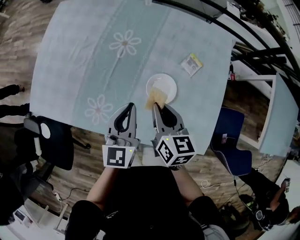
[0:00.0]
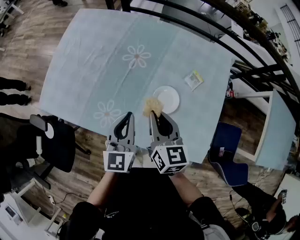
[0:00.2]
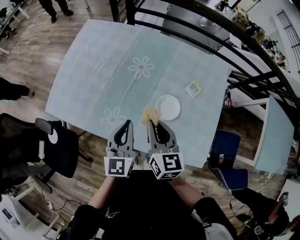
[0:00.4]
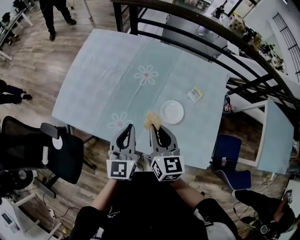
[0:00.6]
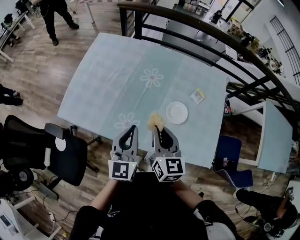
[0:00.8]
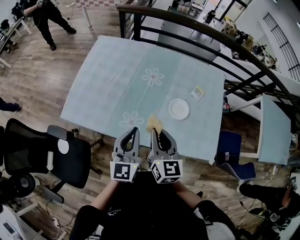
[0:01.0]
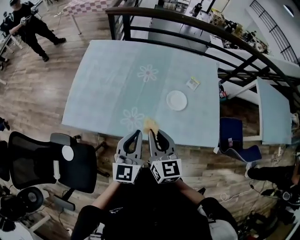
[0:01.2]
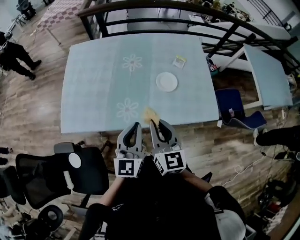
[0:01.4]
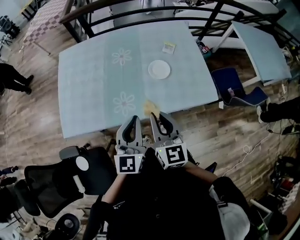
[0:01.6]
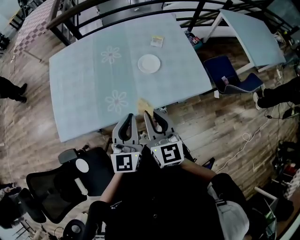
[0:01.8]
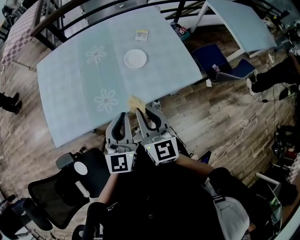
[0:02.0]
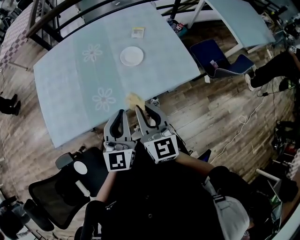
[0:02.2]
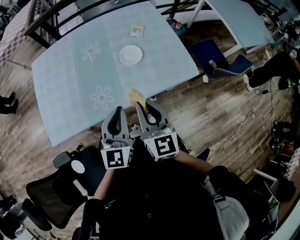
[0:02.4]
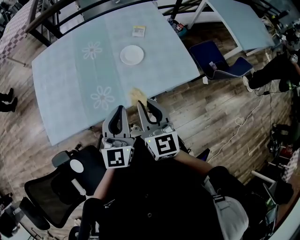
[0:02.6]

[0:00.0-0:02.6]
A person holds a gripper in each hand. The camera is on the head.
0.0 to 1.2 s: Both grippers travel together to the left, backward and upward, about 30 cm. The right gripper swivels roughly 20 degrees.
1.2 to 2.6 s: The grippers both shift to the right by some 10 cm. The left gripper turns by approximately 20 degrees. The right gripper changes its angle by approximately 20 degrees.

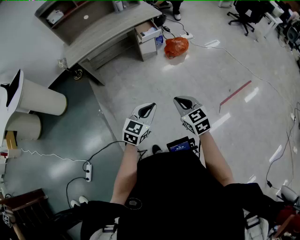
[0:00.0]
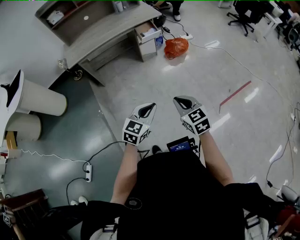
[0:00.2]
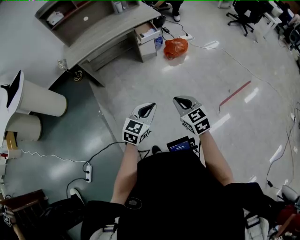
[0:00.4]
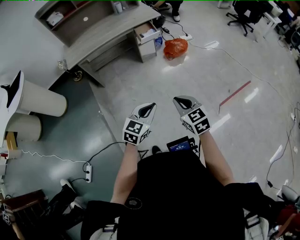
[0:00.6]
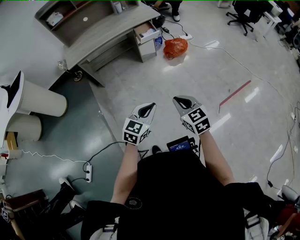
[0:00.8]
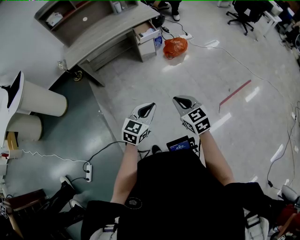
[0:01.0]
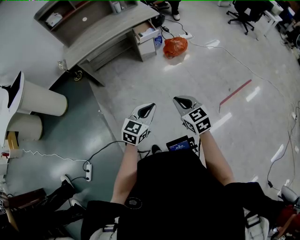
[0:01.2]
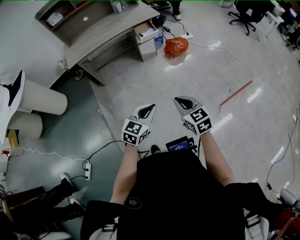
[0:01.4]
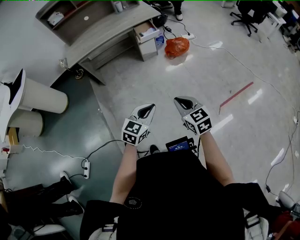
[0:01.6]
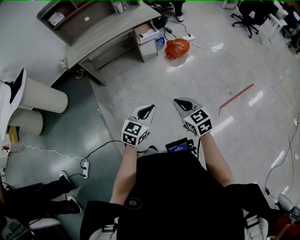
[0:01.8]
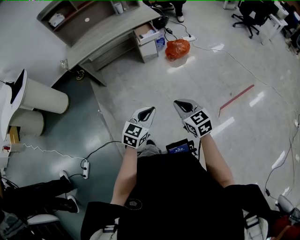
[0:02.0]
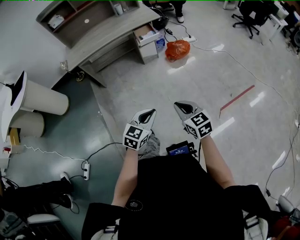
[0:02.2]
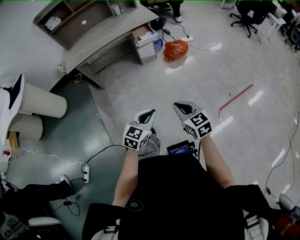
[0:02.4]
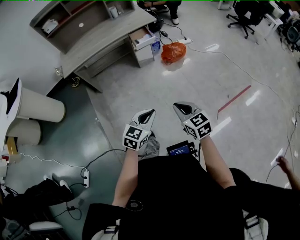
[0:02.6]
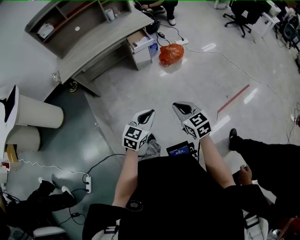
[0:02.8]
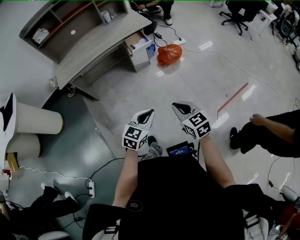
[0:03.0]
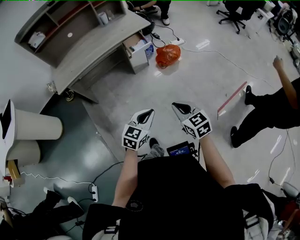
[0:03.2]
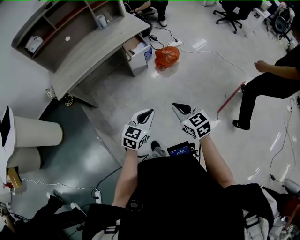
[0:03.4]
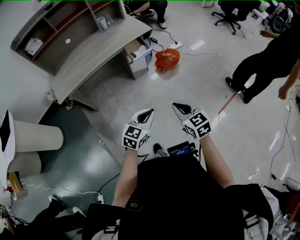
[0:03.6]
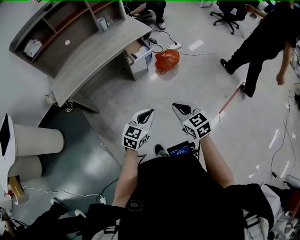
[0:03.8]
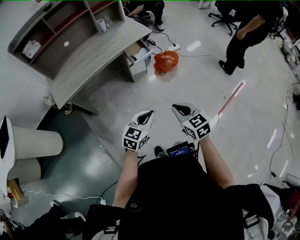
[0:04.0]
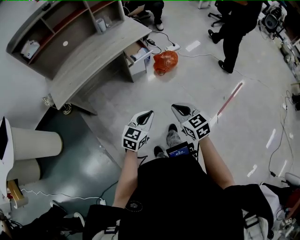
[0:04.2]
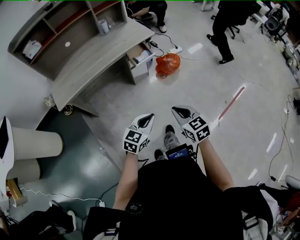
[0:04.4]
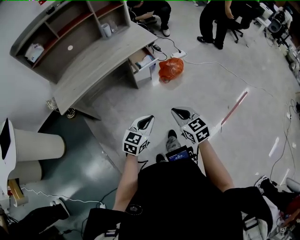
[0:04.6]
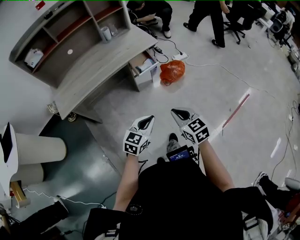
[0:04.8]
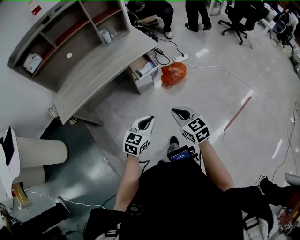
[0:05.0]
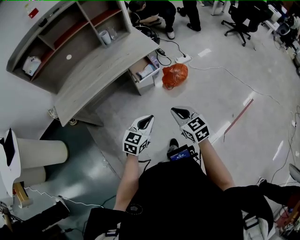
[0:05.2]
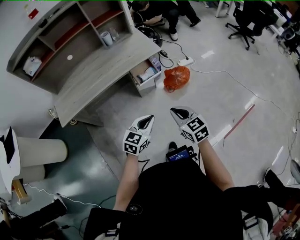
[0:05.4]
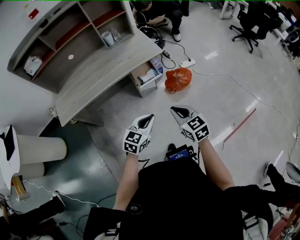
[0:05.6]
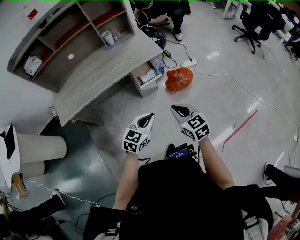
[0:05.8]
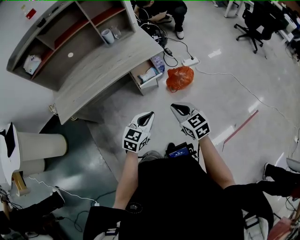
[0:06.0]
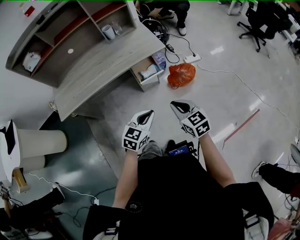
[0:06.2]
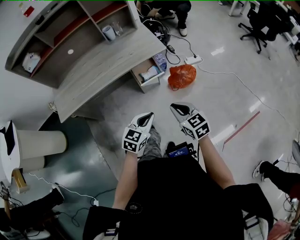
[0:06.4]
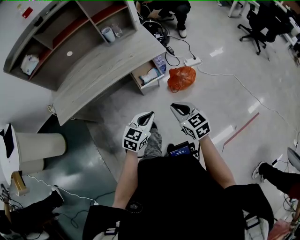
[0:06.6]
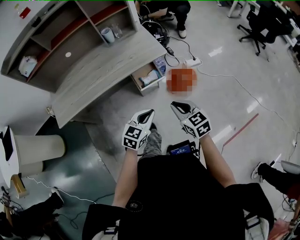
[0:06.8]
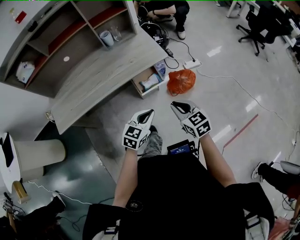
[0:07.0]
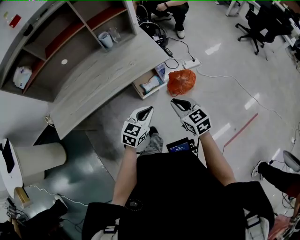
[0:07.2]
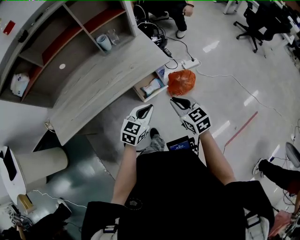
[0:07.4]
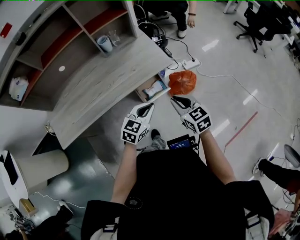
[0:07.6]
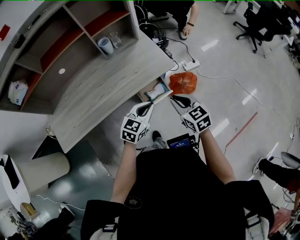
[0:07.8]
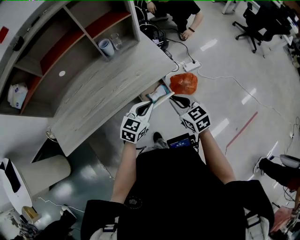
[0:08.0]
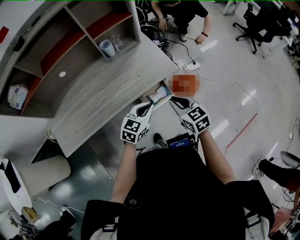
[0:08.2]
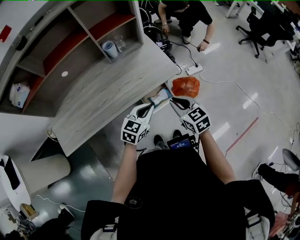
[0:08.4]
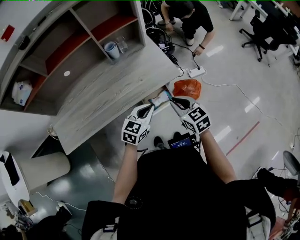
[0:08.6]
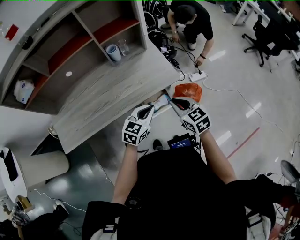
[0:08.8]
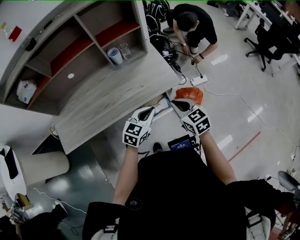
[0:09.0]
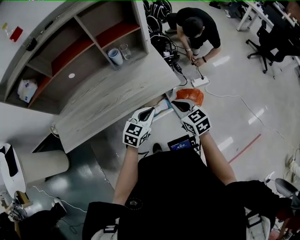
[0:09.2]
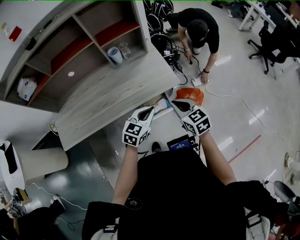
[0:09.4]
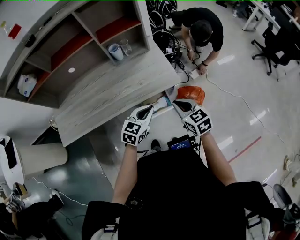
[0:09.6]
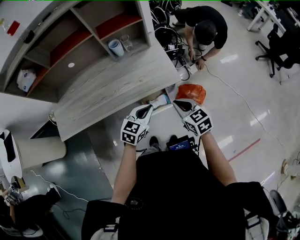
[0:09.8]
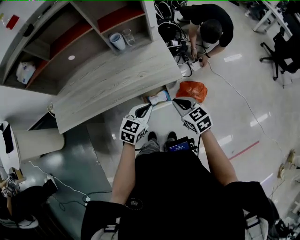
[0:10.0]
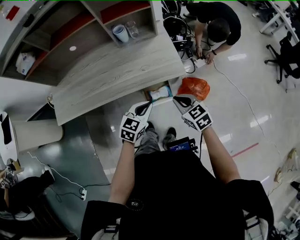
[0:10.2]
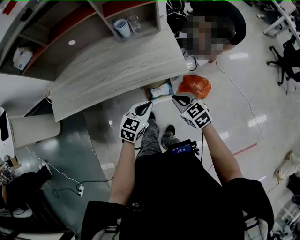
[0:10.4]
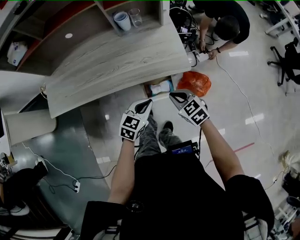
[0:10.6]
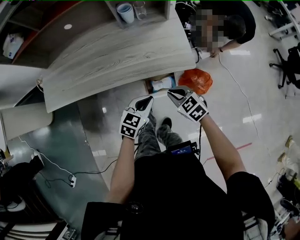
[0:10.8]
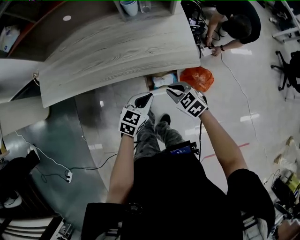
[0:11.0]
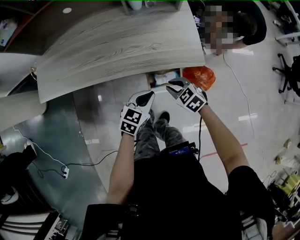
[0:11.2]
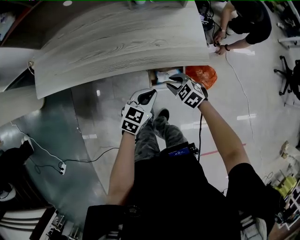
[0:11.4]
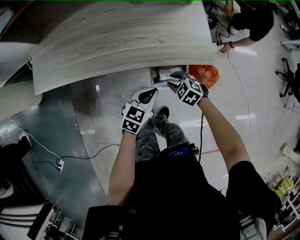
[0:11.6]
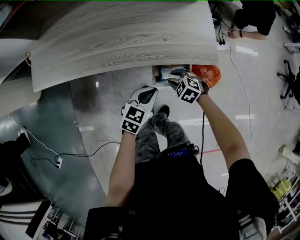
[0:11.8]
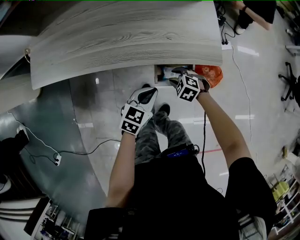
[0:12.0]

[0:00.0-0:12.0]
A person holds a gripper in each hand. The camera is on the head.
0.0 to 1.6 s: There are only small adjustments of the grippers.
1.6 to 3.0 s: Both grippers travel together forward, approximately 10 cm.
3.0 to 4.4 s: The left gripper shifts approximately 15 cm forward and to the left, while the right gripper is displaced to the left and forward by roughly 15 cm.
4.4 to 6.0 s: The two grippers go approximately 25 cm forward.
6.0 to 7.6 s: The grippers both shift forward by roughly 20 cm.
7.6 to 9.0 s: The two grippers go approximately 10 cm forward.
9.0 to 10.4 s: The grippers both shift downward by approximately 10 cm. The right gripper changes its angle by approximately 20 degrees.
10.4 to 12.0 s: The right gripper travels downward by about 25 cm, rotates approximately 50 degrees, and opens up, while the left gripper goes about 15 cm downward and to the left.

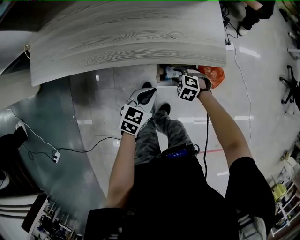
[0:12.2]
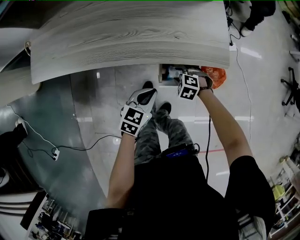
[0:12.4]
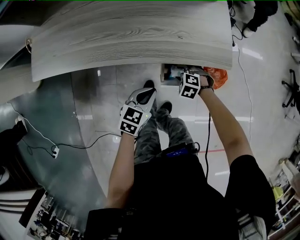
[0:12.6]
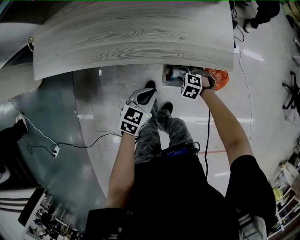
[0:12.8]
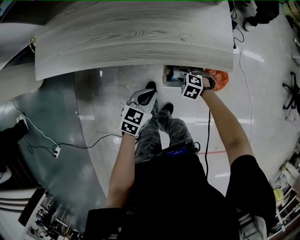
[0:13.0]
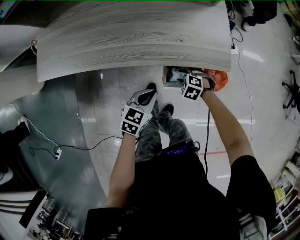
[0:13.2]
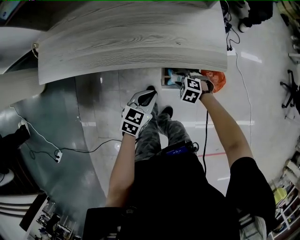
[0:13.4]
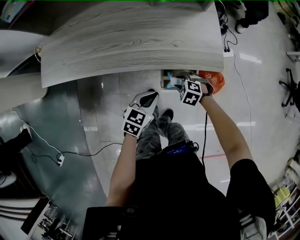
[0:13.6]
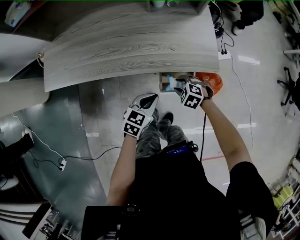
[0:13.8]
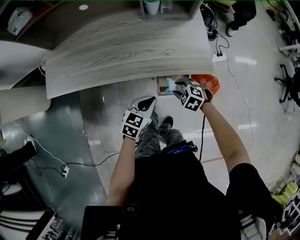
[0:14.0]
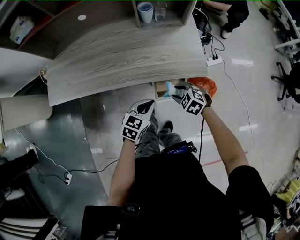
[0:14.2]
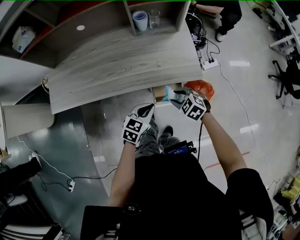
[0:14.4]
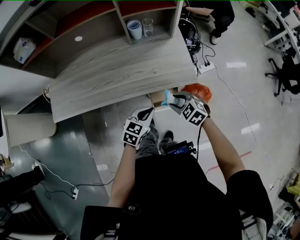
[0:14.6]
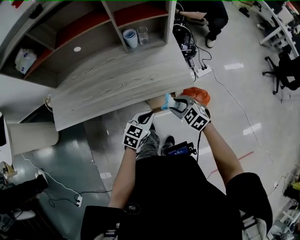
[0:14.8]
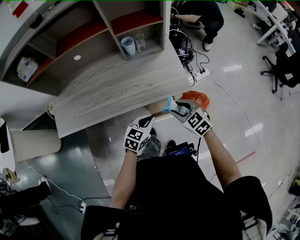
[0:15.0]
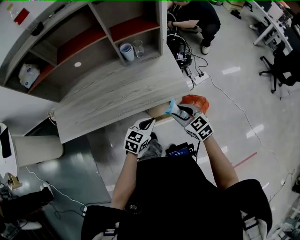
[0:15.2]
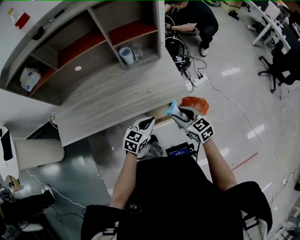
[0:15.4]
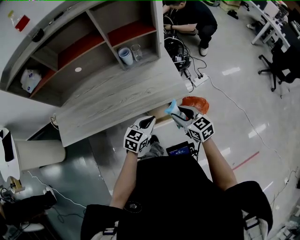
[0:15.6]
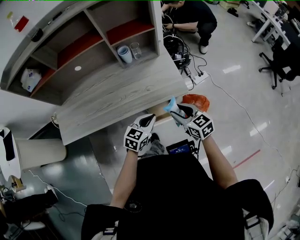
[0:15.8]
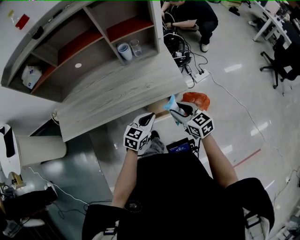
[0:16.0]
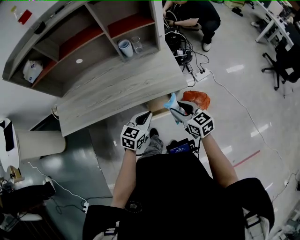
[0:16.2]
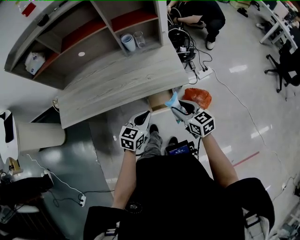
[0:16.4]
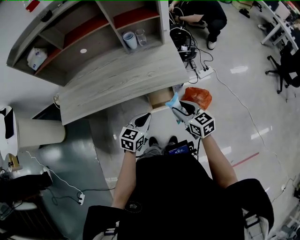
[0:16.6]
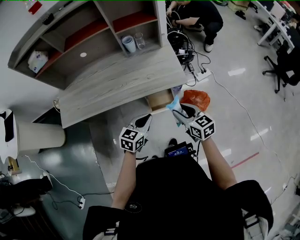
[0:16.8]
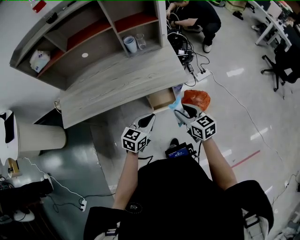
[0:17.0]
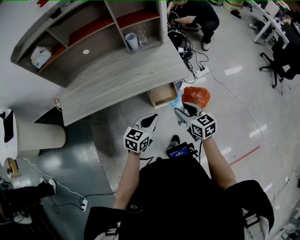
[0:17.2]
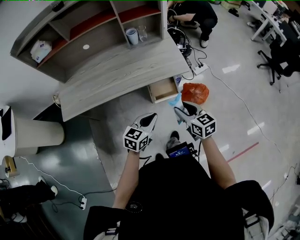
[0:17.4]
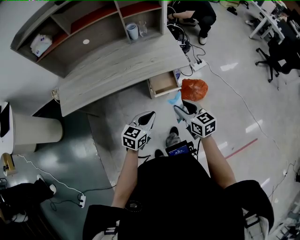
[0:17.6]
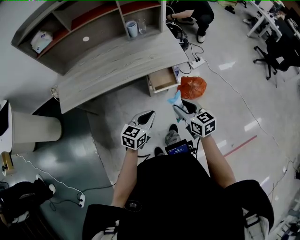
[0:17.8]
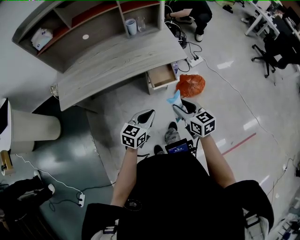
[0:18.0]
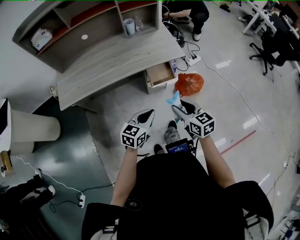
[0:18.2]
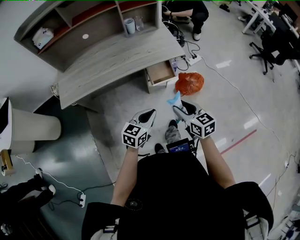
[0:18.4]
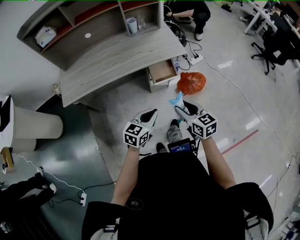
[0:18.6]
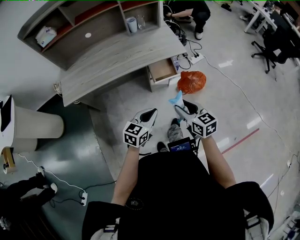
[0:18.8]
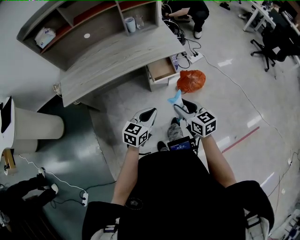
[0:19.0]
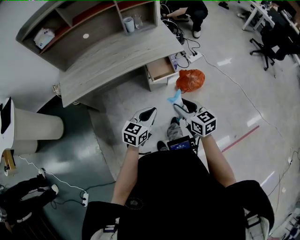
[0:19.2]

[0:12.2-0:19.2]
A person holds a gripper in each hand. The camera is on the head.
12.2 to 13.6 s: The grippers move only a little.
13.6 to 15.0 s: The right gripper heads upward, covering roughly 25 cm, and points its fingers roughly 30 degrees further upward, while the left gripper shifts approximately 10 cm upward and to the right.
15.0 to 16.4 s: The right gripper moves approximately 5 cm, and changes its angle by roughly 30 degrees, while the left gripper changes place by approximately 5 cm.
16.4 to 17.8 s: The two grippers go some 15 cm backward.
17.8 to 19.2 s: Both grippers move backward, approximately 10 cm.

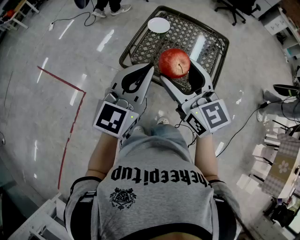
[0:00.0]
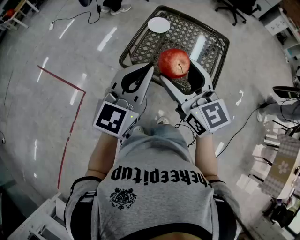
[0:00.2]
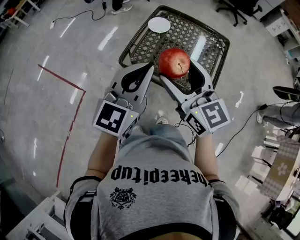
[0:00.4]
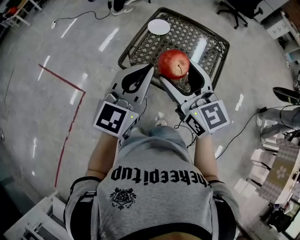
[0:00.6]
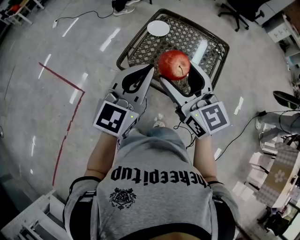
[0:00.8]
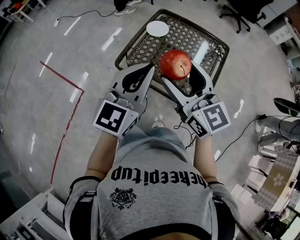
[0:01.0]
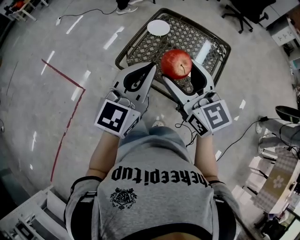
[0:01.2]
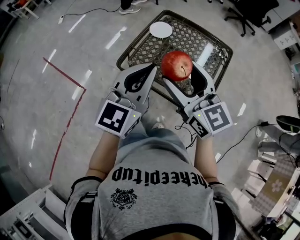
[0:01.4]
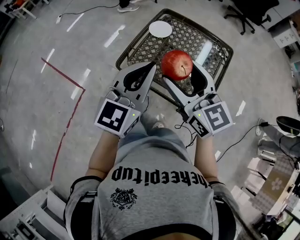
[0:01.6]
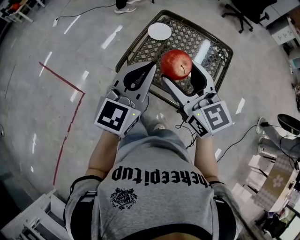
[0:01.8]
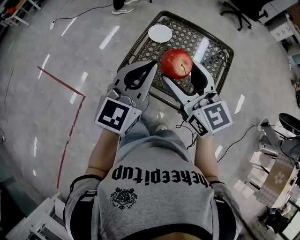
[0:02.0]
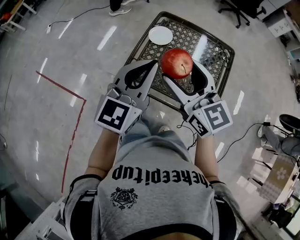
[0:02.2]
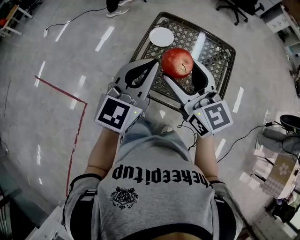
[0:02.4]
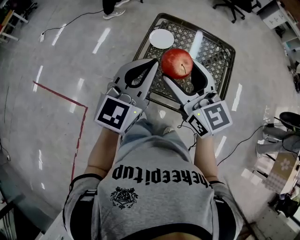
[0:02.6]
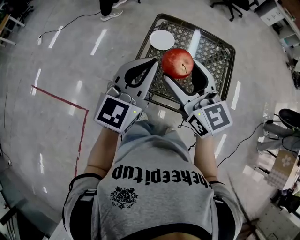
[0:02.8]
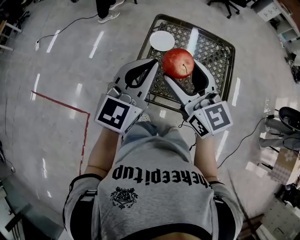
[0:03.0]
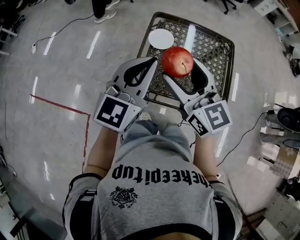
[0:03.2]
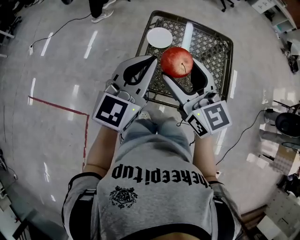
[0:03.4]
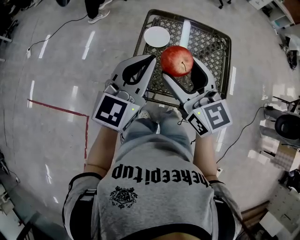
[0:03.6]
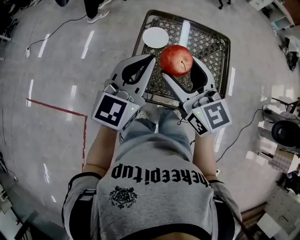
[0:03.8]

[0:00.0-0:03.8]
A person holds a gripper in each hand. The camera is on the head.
0.0 to 1.2 s: The two grippers go roughly 5 cm to the right.
1.2 to 2.6 s: The grippers both shift forward and to the left by roughly 15 cm.
2.6 to 3.8 s: The left gripper changes place by some 5 cm.
